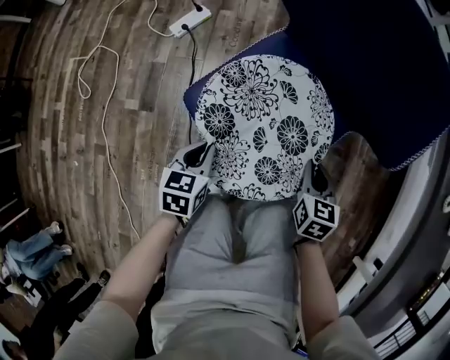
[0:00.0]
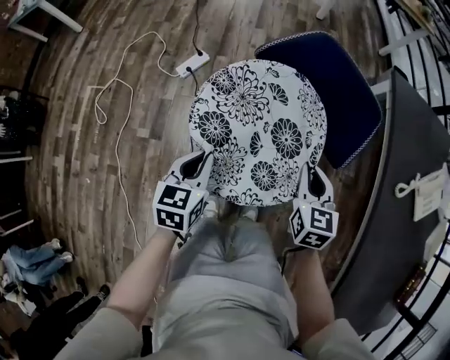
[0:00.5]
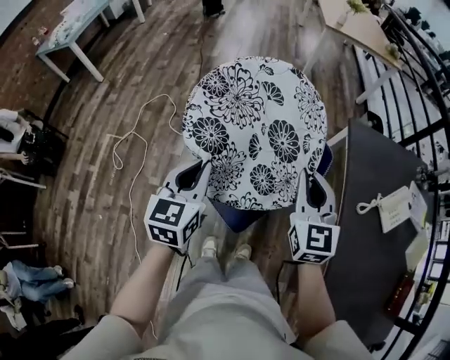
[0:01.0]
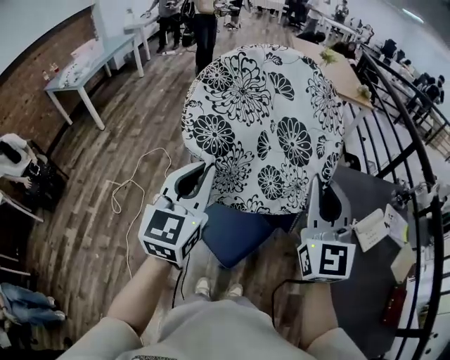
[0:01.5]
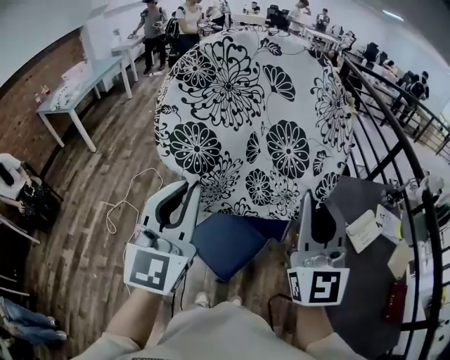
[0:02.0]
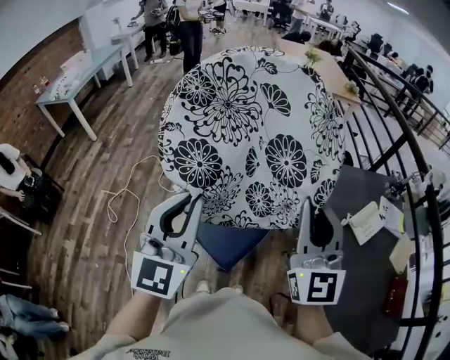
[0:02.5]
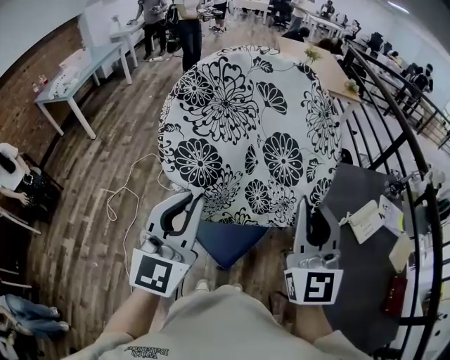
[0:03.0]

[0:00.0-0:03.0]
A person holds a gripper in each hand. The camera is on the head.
0:00.0 to 0:01.5: Both grippers travel together upward and to the right, approximately 25 cm. The left gripper turns by roughly 30 degrees. The right gripper tilts its fingers approximately 30 degrees upward.
0:01.5 to 0:03.0: The right gripper goes downward and returns, roughly 15 cm each way; the left gripper moves approximately 10 cm downward and comes back.

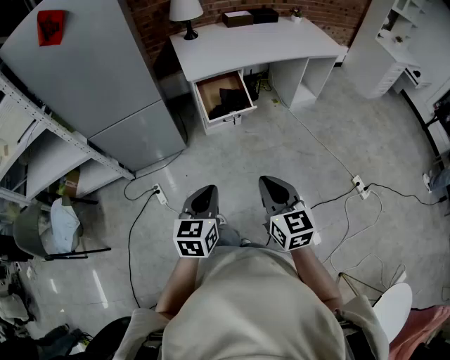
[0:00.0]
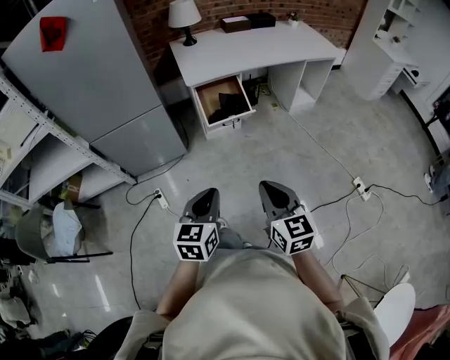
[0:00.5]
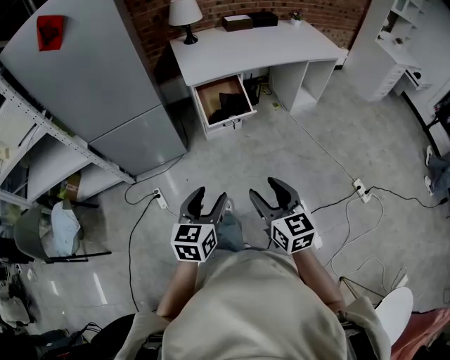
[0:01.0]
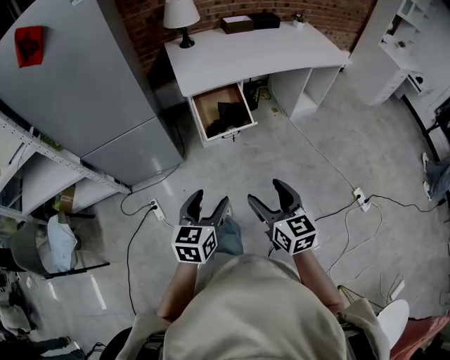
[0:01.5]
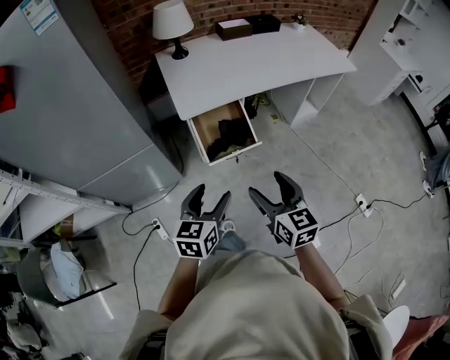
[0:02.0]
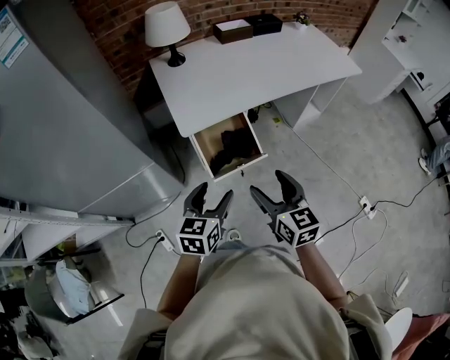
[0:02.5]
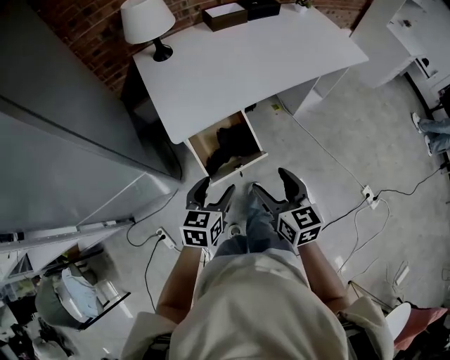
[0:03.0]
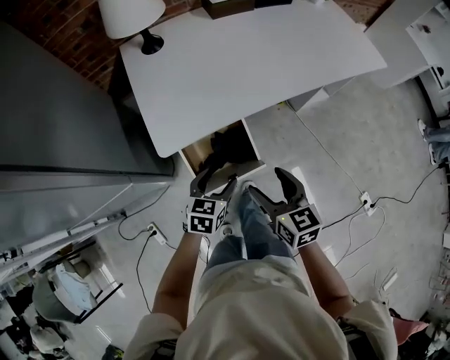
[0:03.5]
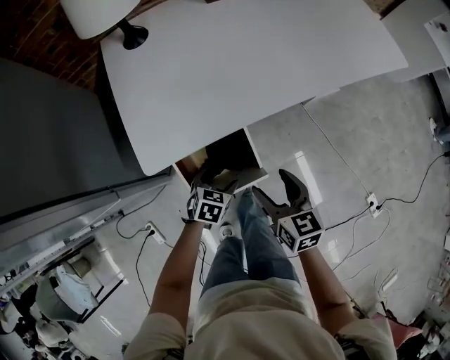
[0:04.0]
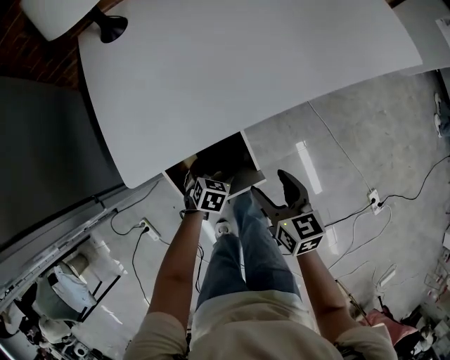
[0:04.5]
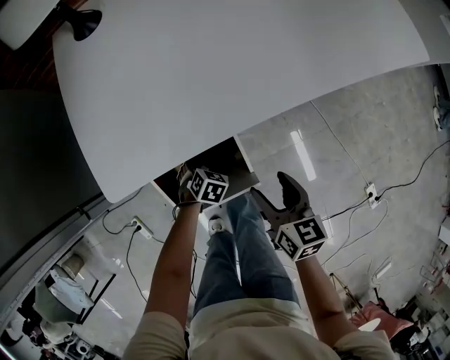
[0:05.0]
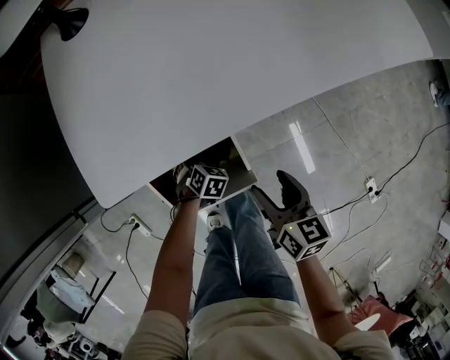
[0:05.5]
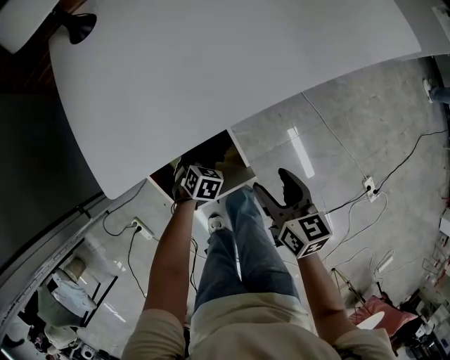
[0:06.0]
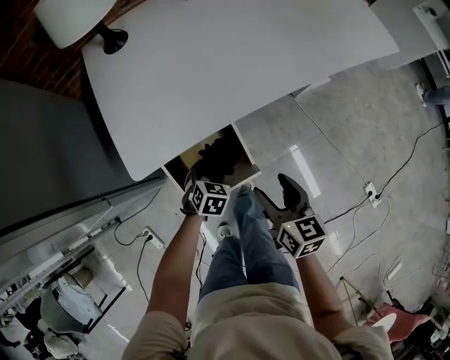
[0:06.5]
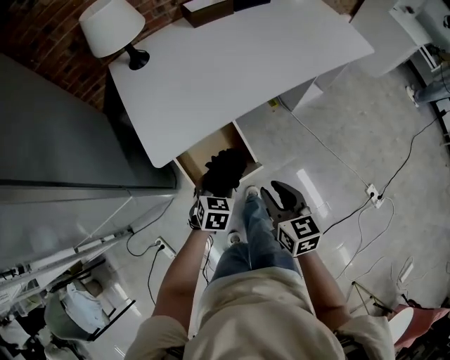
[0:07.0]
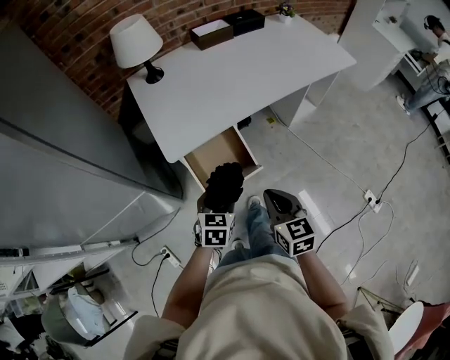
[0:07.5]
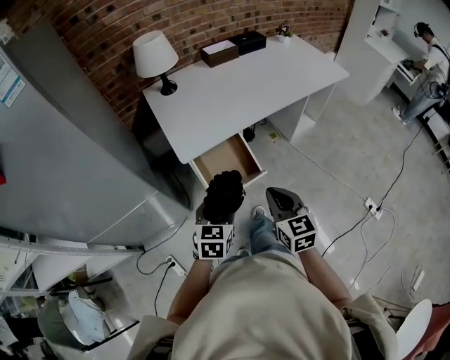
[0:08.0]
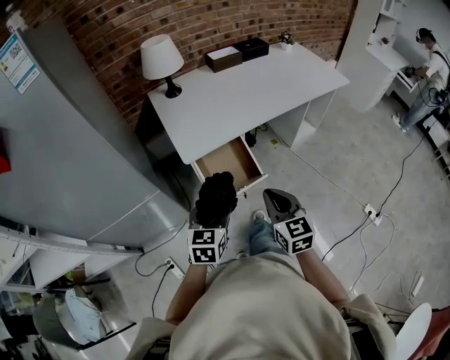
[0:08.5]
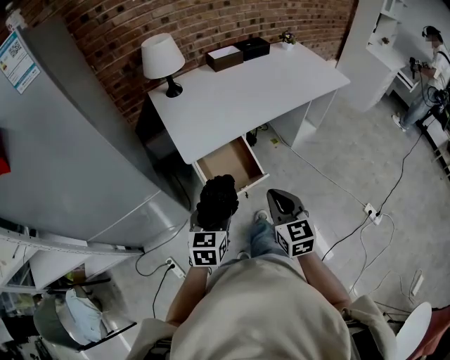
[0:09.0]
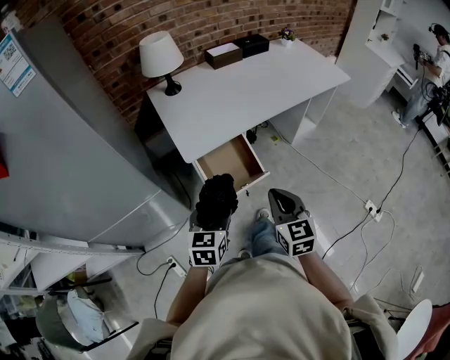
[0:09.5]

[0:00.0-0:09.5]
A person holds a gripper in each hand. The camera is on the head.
0:00.0 to 0:02.0: Both grippers travel together forward, roughly 25 cm. The right gripper opens. The left gripper opens up.
0:02.0 to 0:04.0: Both grippers travel together forward and downward, roughly 40 cm. The left gripper tips its fingers downward by some 30 degrees.
0:04.0 to 0:05.5: The left gripper travels downward and forward by roughly 20 cm, and rotates approximately 20 degrees. Meanwhile the right gripper moves downward, about 10 cm.
0:05.5 to 0:07.5: Both grippers move upward and backward, some 35 cm. The right gripper swivels roughly 20 degrees, and closes. The left gripper tips its fingers upward by about 30 degrees.
0:07.5 to 0:09.5: The right gripper goes some 5 cm upward; the left gripper is displaced upward, backward and to the left by some 15 cm.

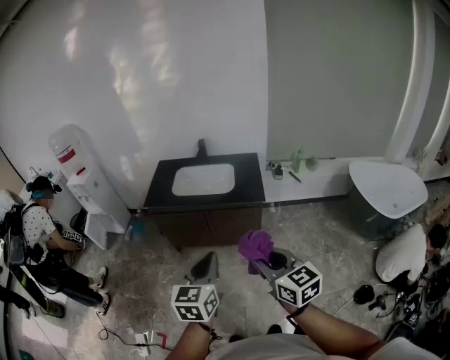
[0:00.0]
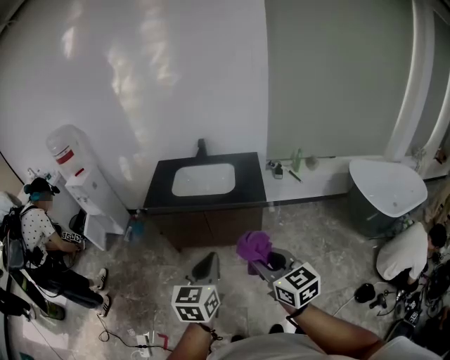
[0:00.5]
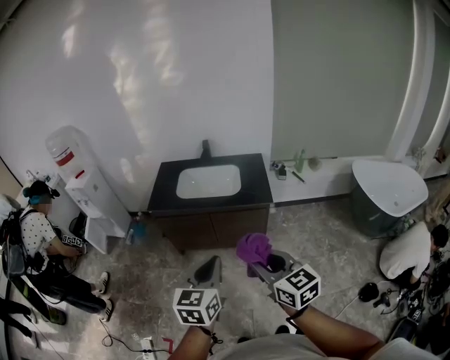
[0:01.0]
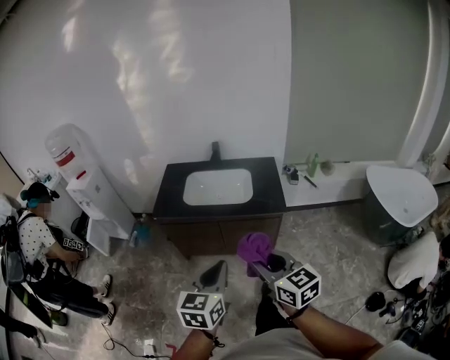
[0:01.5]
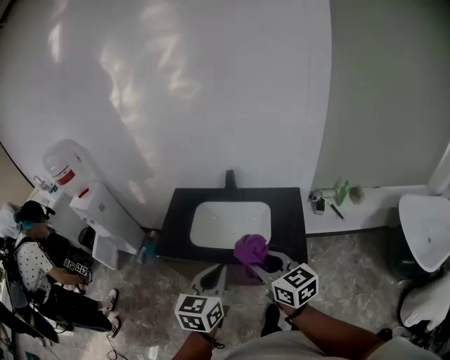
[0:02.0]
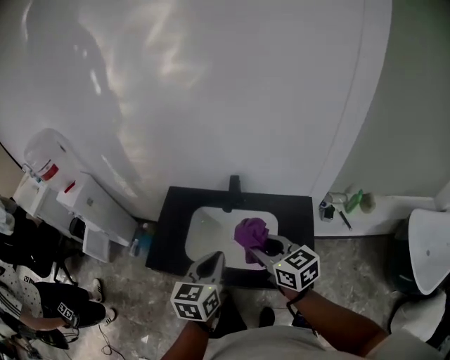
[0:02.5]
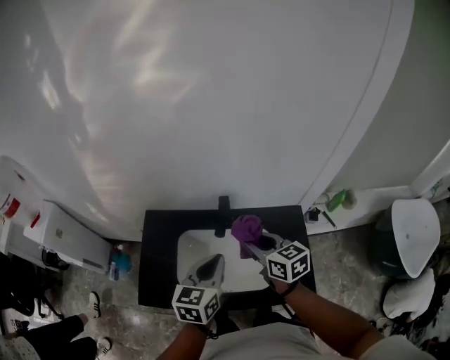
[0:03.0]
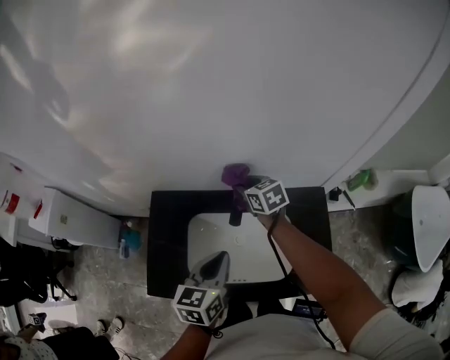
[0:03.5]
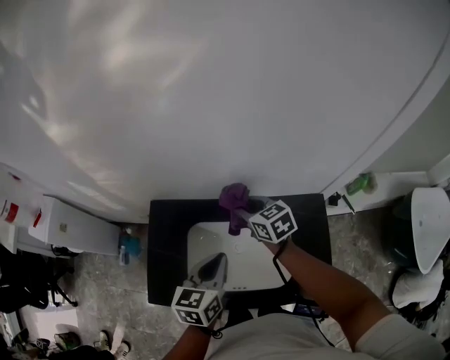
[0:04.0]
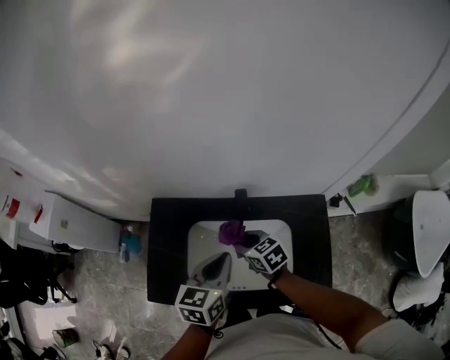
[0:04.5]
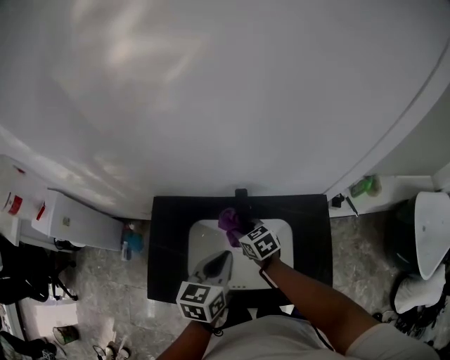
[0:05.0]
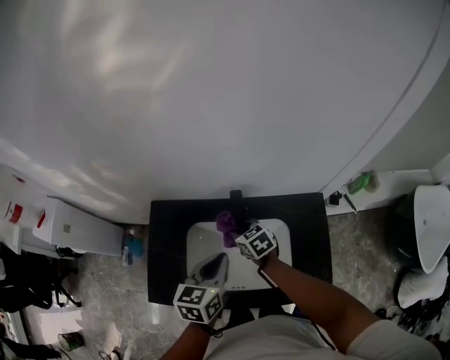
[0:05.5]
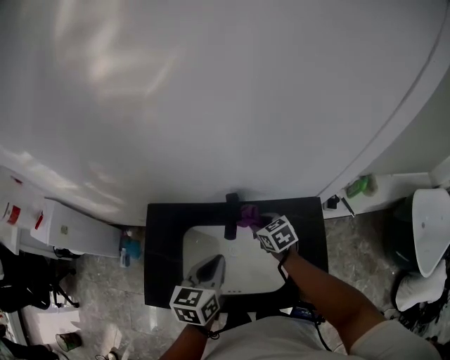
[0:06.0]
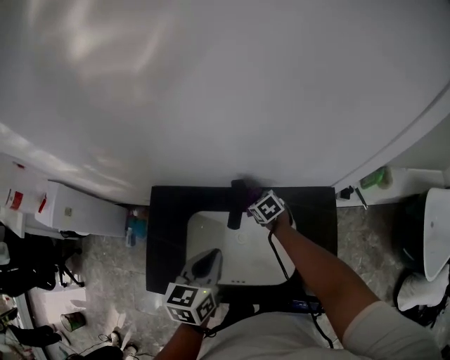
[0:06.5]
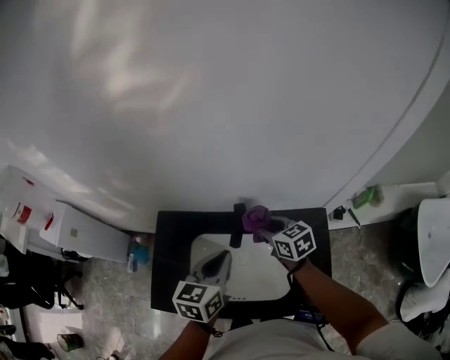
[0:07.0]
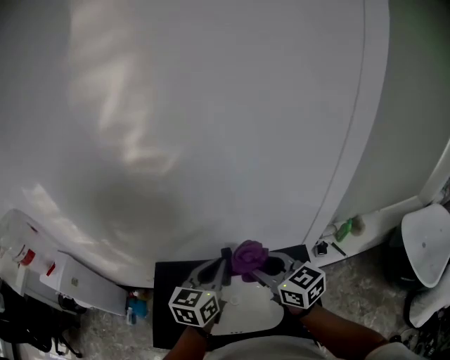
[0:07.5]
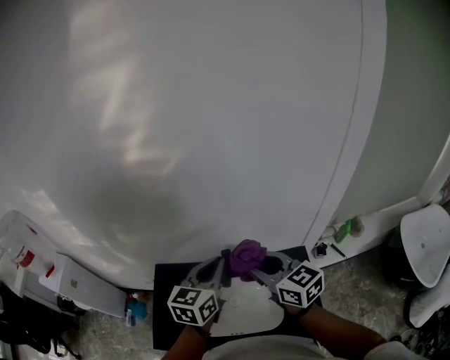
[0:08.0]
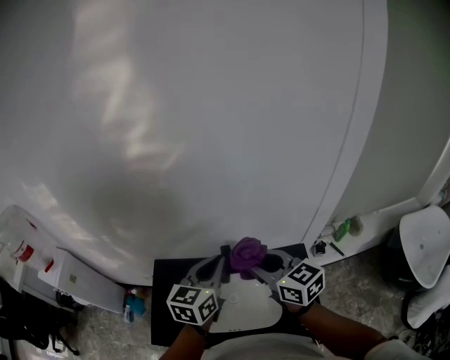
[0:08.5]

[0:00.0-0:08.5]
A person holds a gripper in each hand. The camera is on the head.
0:00.0 to 0:02.0: The two grippers travel together, forward, approximately 40 cm.
0:02.0 to 0:04.0: The pair of grippers is taken forward, roughly 50 cm. The right gripper turns by approximately 20 degrees.
0:04.0 to 0:06.5: The right gripper moves downward, some 20 cm, and turns by roughly 20 degrees.
0:06.5 to 0:08.5: The left gripper travels upward by some 20 cm, and turns by some 20 degrees. The right gripper moves upward, roughly 40 cm, and points its fingers approximately 40 degrees further upward.

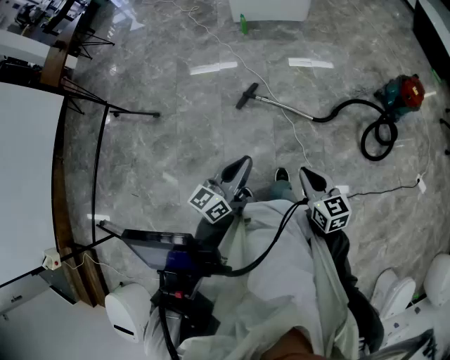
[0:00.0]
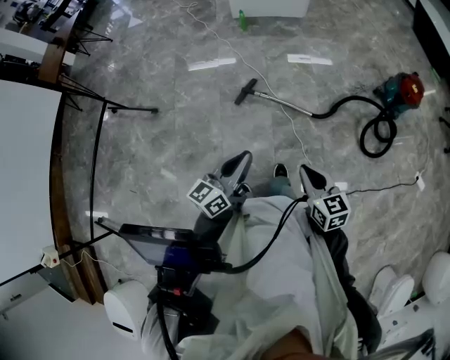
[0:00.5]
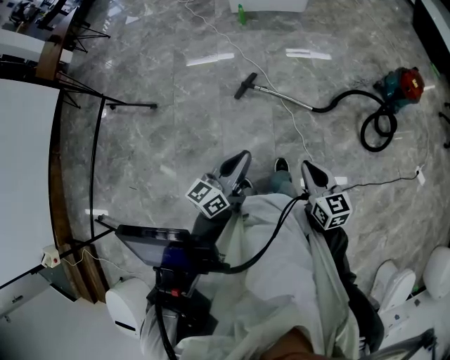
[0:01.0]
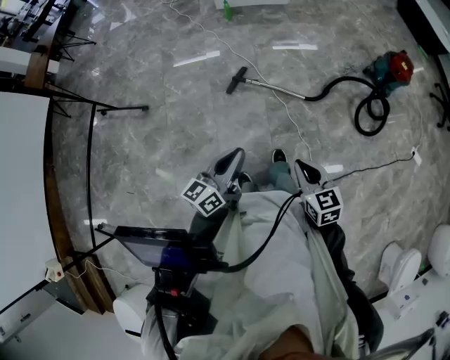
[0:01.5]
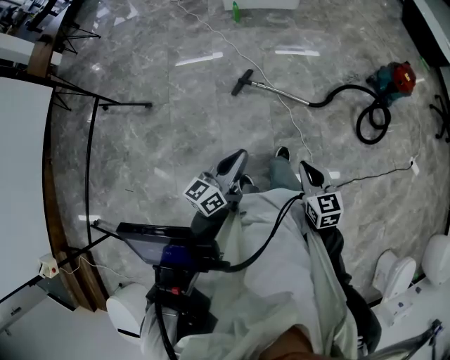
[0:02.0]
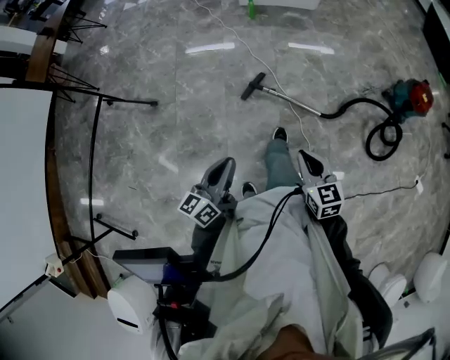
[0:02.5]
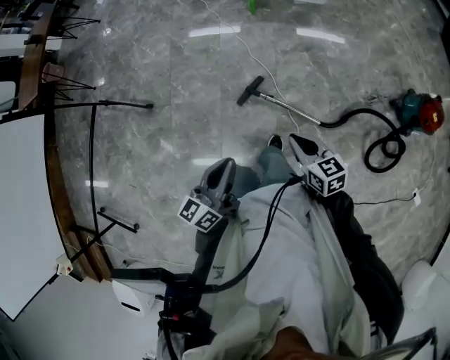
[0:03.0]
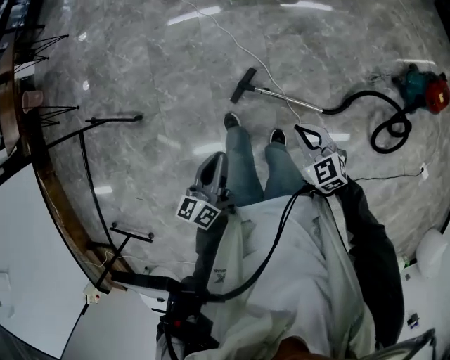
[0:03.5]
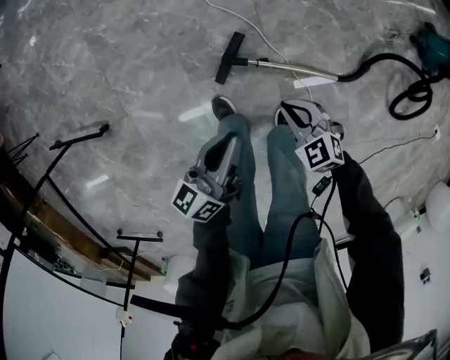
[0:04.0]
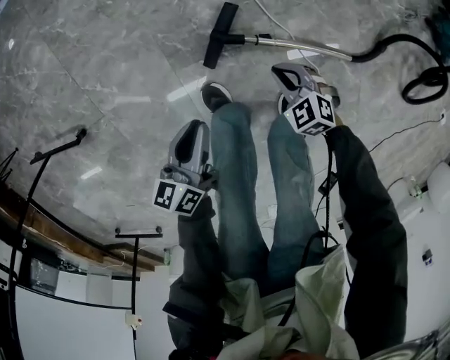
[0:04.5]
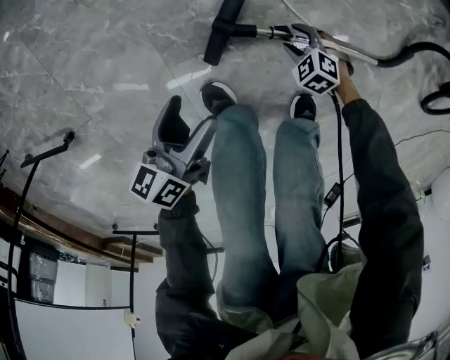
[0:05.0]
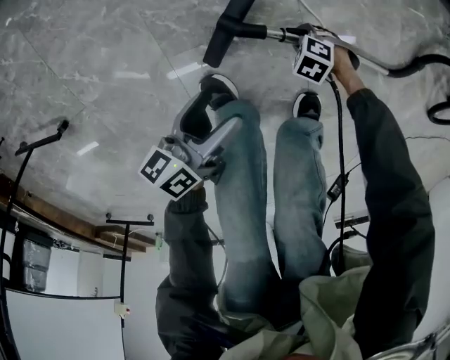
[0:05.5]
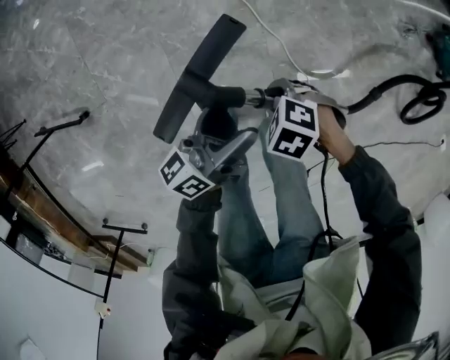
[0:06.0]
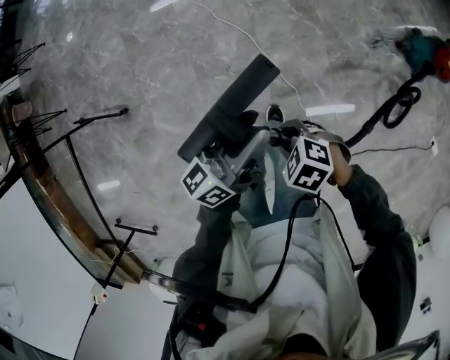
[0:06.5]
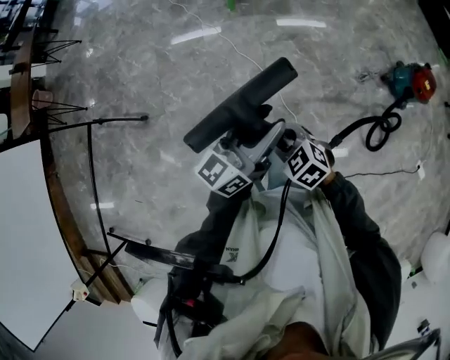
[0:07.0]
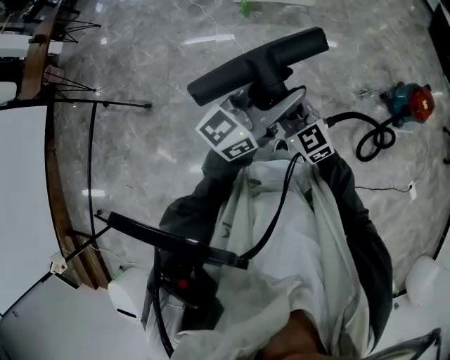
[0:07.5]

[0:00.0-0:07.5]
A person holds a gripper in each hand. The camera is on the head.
0:00.0 to 0:02.0: The left gripper is displaced to the left by roughly 5 cm. The right gripper moves approximately 5 cm.
0:02.0 to 0:04.0: The two grippers travel together, forward, approximately 50 cm. The grippers both shift downward by approximately 35 cm. The right gripper changes its angle by roughly 30 degrees.
0:04.0 to 0:05.5: The grippers both shift downward by approximately 40 cm. The right gripper rotates approximately 40 degrees, and opens its fingers. The left gripper turns by about 20 degrees, and opens its fingers.
0:05.5 to 0:07.5: Both grippers move upward, about 90 cm. The left gripper tilts its fingers roughly 40 degrees upward, and closes its fingers, while the right gripper angles its fingers upward, by some 60 degrees.
